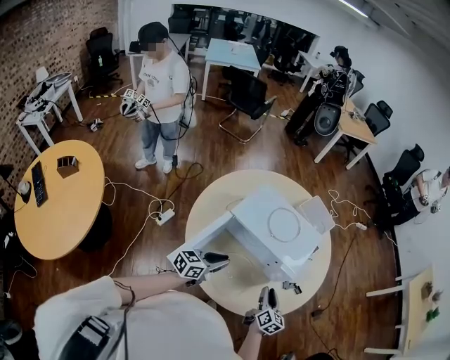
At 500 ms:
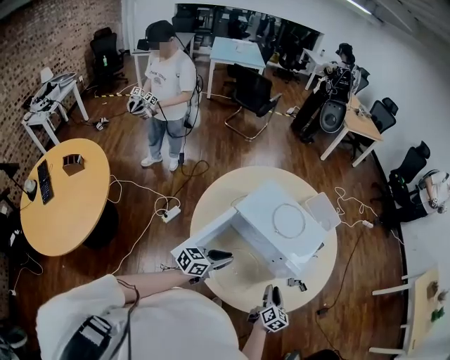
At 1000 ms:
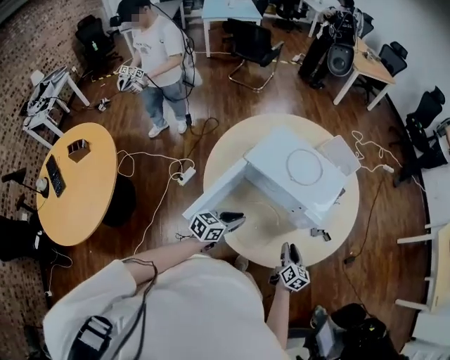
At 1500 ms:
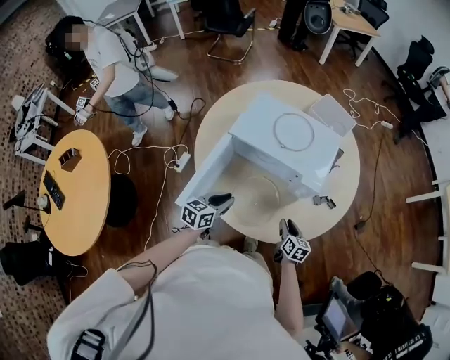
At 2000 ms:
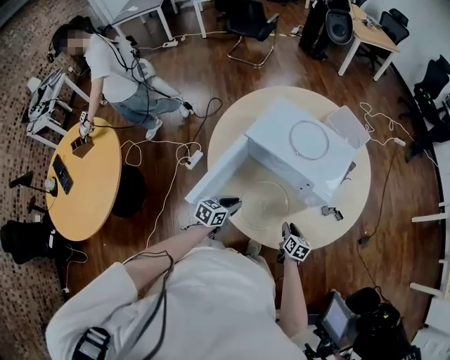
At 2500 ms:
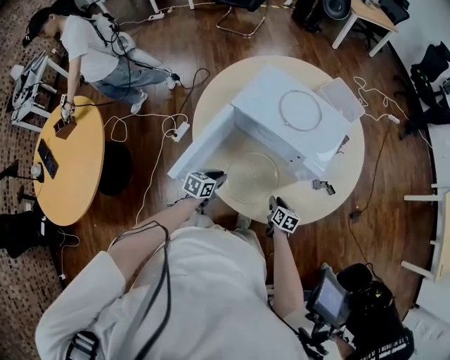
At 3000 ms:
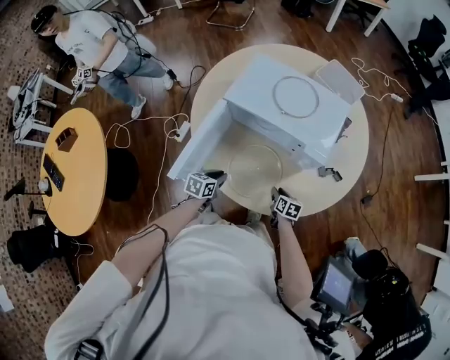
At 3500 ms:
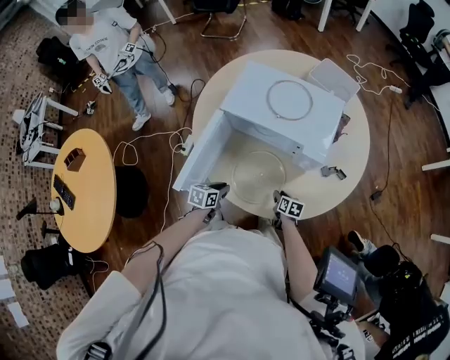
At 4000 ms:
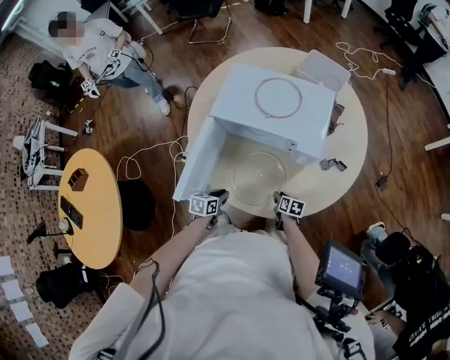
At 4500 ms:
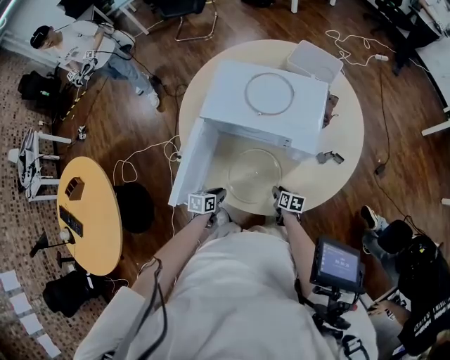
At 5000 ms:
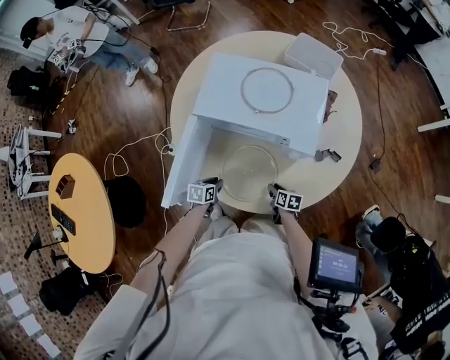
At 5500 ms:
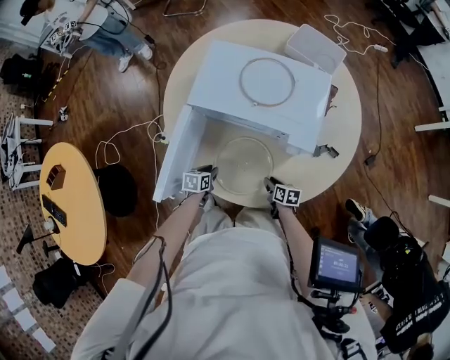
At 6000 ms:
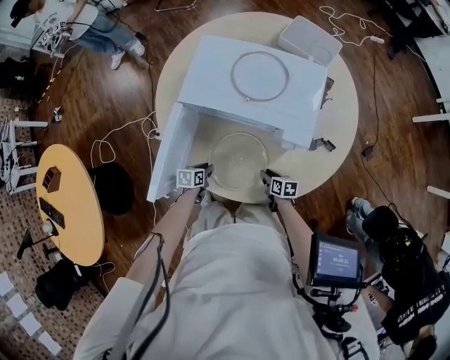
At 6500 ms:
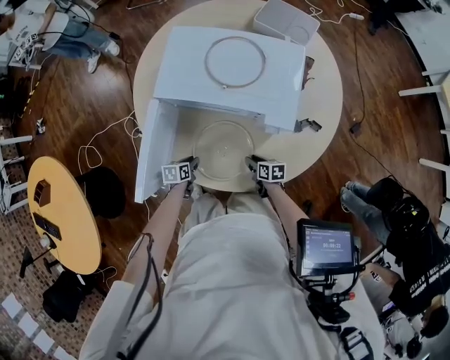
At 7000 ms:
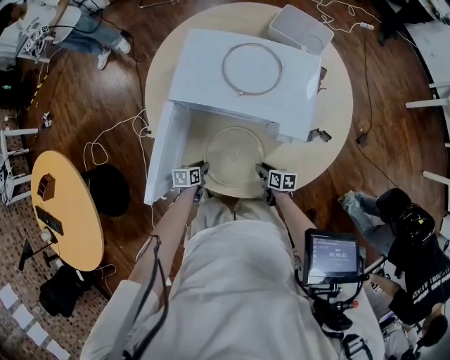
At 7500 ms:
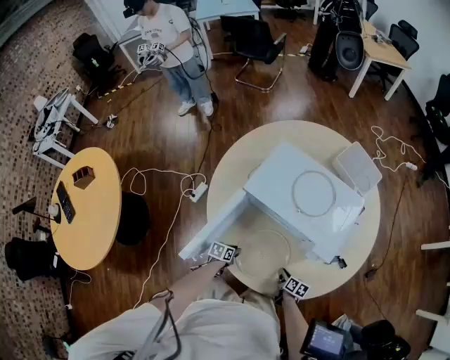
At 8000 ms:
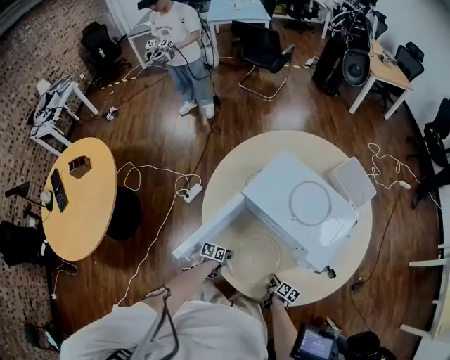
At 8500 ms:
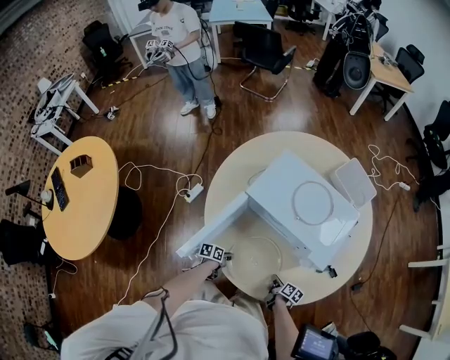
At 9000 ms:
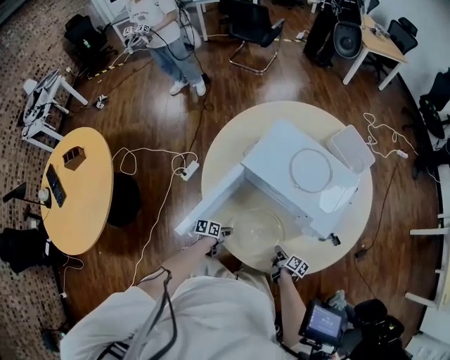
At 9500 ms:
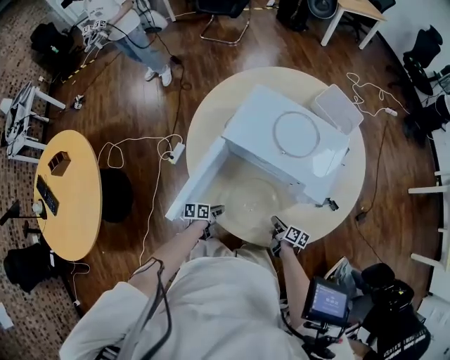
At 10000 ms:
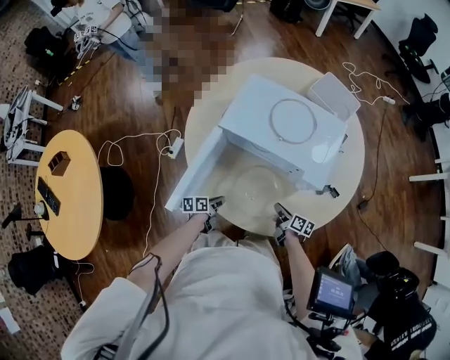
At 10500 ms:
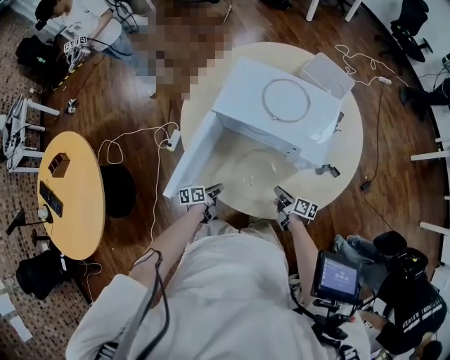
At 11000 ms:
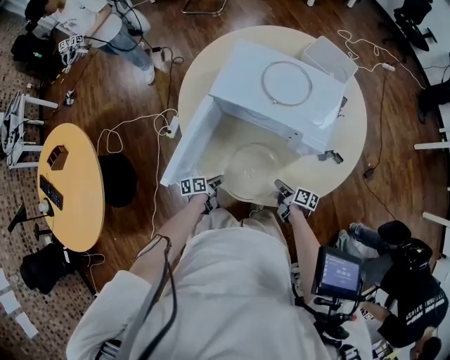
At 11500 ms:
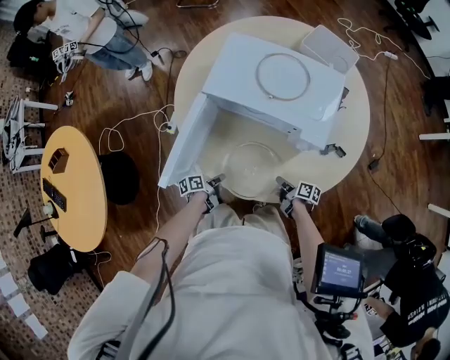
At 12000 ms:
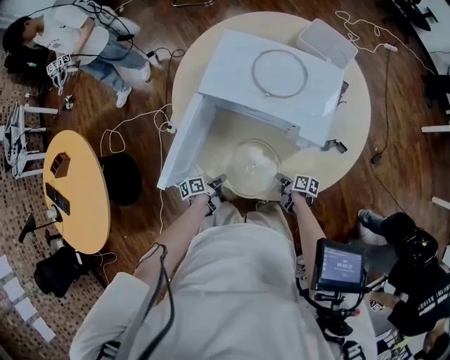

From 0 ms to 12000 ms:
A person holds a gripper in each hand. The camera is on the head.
From 0 ms to 2000 ms: The grippers both shift downward by roughly 15 cm. The left gripper changes its angle by some 20 degrees, while the right gripper changes its angle by approximately 20 degrees.
From 2000 ms to 4000 ms: The two grippers go approximately 10 cm downward.
From 4000 ms to 6000 ms: The left gripper heads downward and forward, covering about 10 cm.
From 6000 ms to 8000 ms: The left gripper swivels roughly 20 degrees.
From 8000 ms to 10000 ms: The grippers both shift upward by about 5 cm.
From 10000 ms to 12000 ms: The right gripper goes about 5 cm downward.

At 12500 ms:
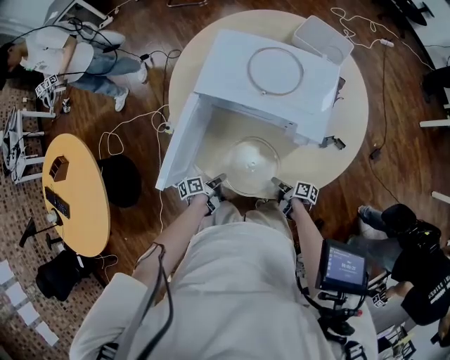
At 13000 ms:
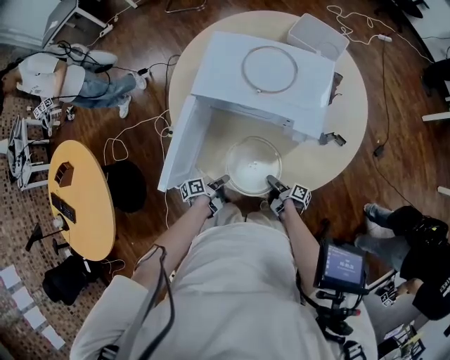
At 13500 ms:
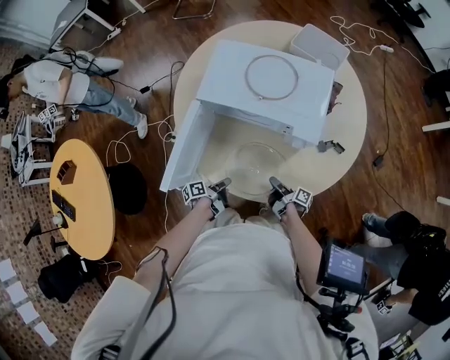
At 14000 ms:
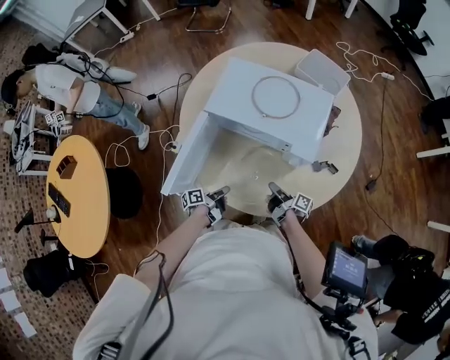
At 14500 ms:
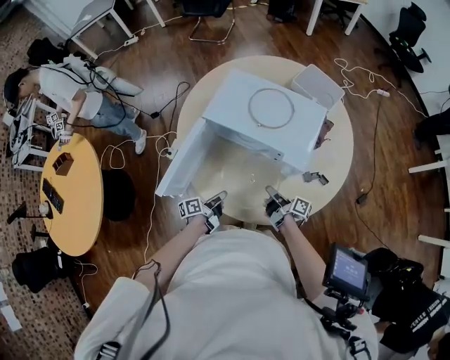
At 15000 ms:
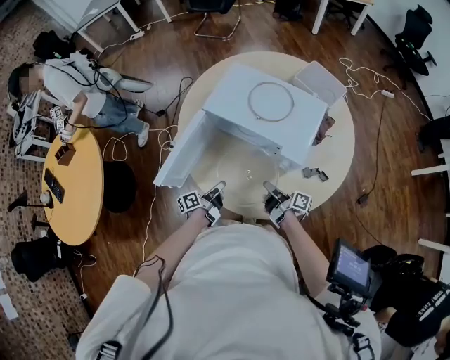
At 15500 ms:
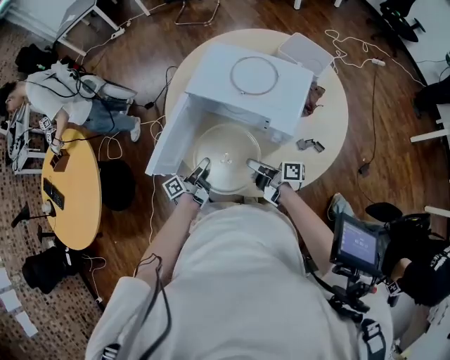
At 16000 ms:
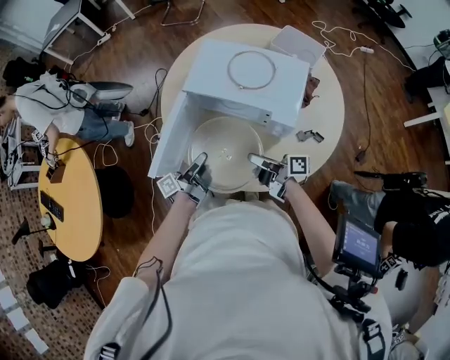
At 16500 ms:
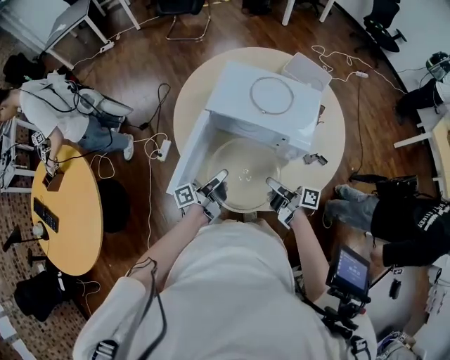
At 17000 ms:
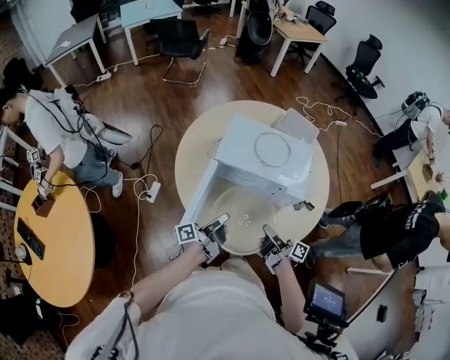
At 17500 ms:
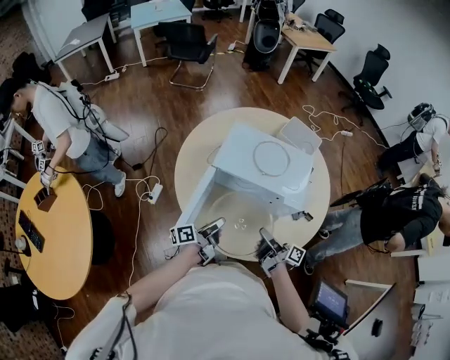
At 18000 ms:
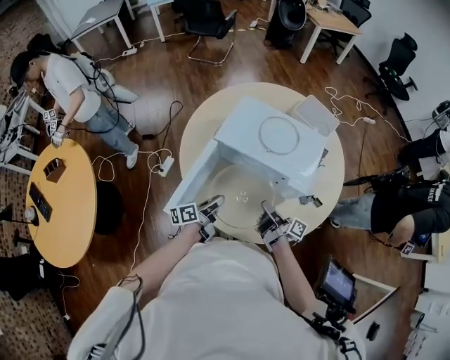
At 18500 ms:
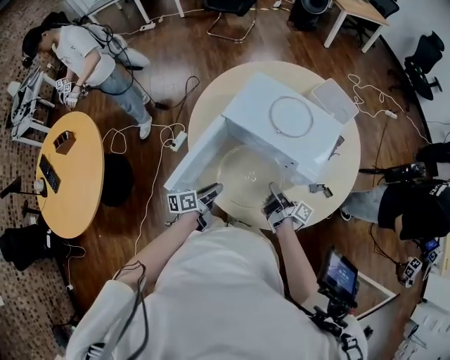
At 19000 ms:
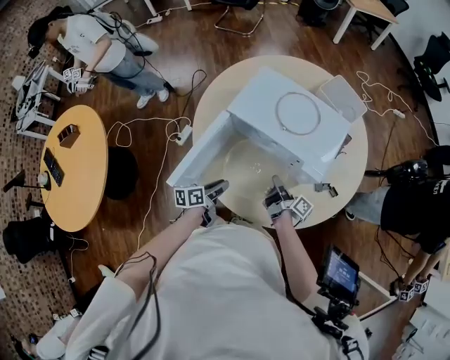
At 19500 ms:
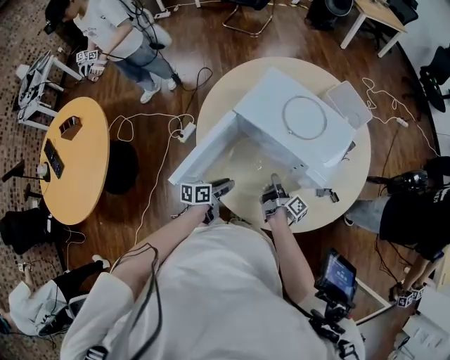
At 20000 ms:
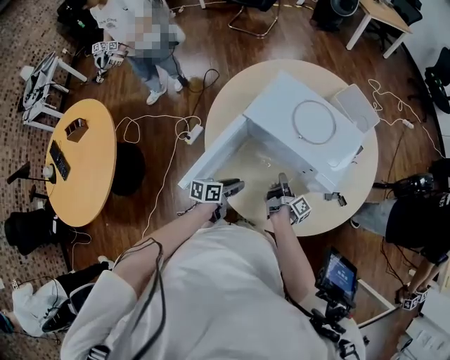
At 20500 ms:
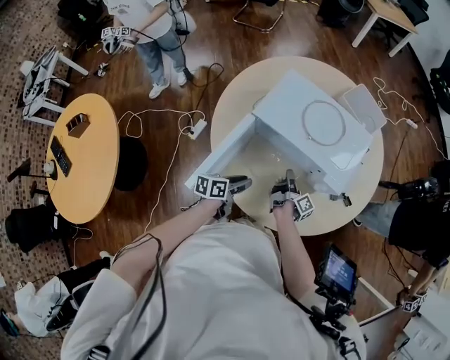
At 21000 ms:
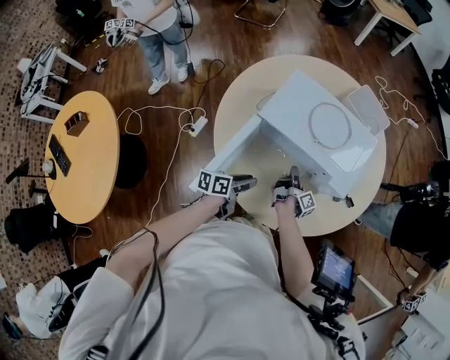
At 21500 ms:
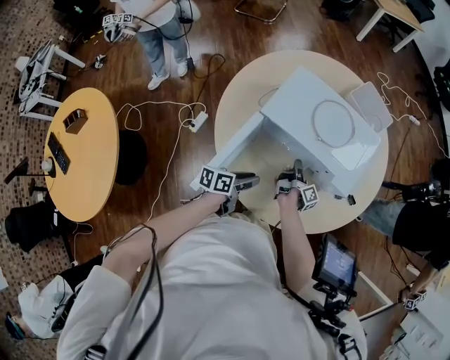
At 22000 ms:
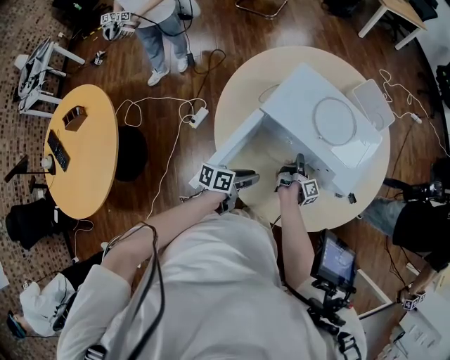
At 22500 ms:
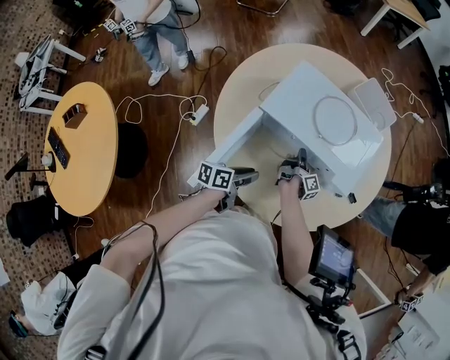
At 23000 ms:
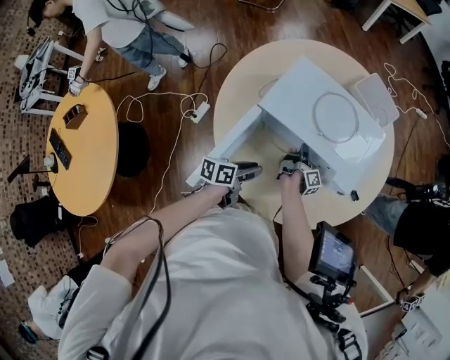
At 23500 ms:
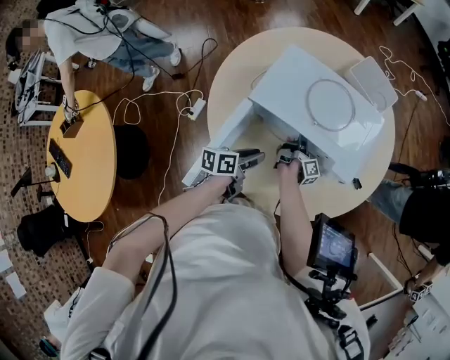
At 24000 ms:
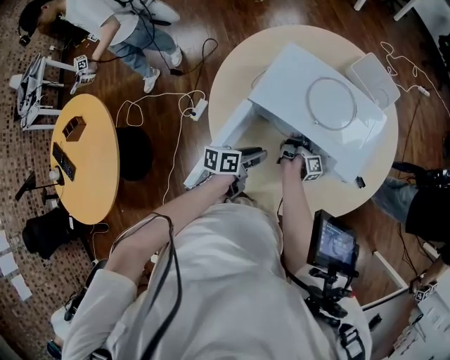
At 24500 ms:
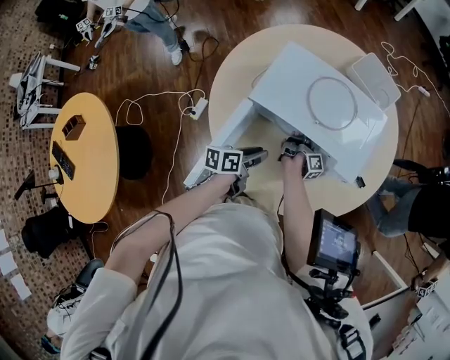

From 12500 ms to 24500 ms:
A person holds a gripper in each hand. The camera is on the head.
From 12500 ms to 14500 ms: The right gripper goes about 20 cm upward and forward, swivels about 20 degrees, and closes; the left gripper heads upward, covering about 10 cm.
From 14500 ms to 16500 ms: The right gripper heads upward and to the left, covering approximately 15 cm, while the left gripper goes approximately 15 cm upward, and turns by about 20 degrees.
From 16500 ms to 18500 ms: The left gripper shifts about 5 cm downward, and swivels about 30 degrees. Meanwhile the right gripper moves forward and downward, approximately 10 cm.
From 18500 ms to 20500 ms: The right gripper heads downward and forward, covering about 10 cm, and rotates about 30 degrees.
From 20500 ms to 22500 ms: The right gripper moves forward, roughly 5 cm.
From 22500 ms to 24500 ms: The left gripper heads forward, covering some 5 cm.

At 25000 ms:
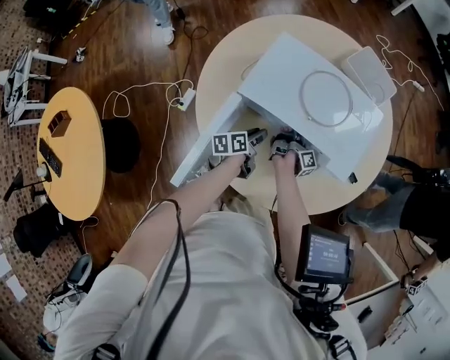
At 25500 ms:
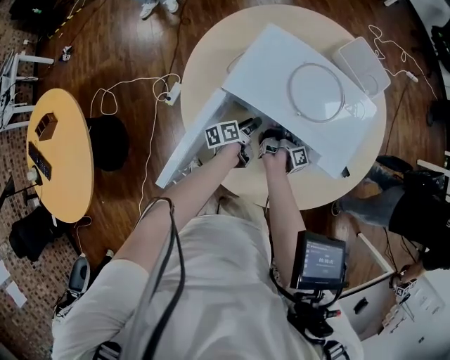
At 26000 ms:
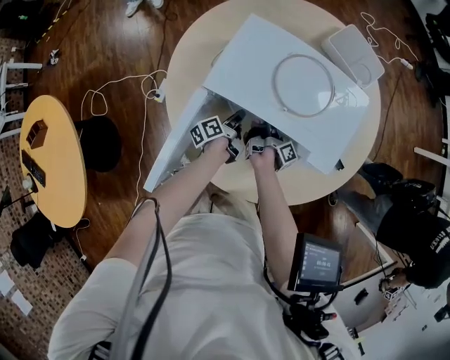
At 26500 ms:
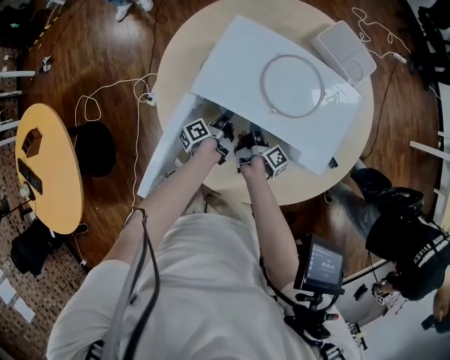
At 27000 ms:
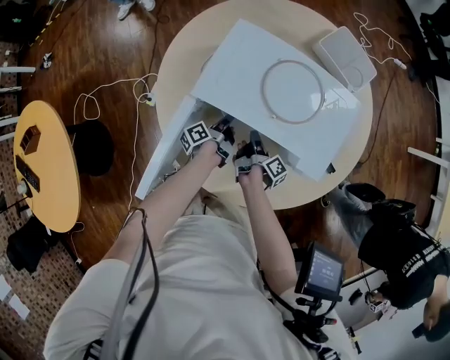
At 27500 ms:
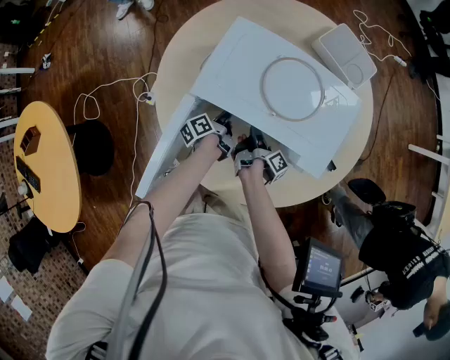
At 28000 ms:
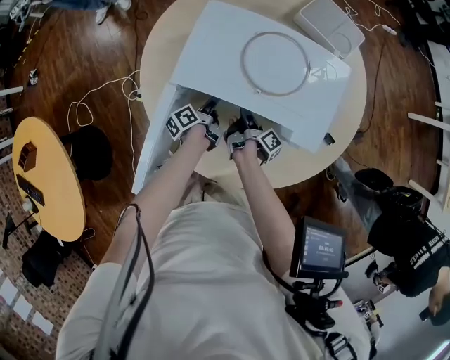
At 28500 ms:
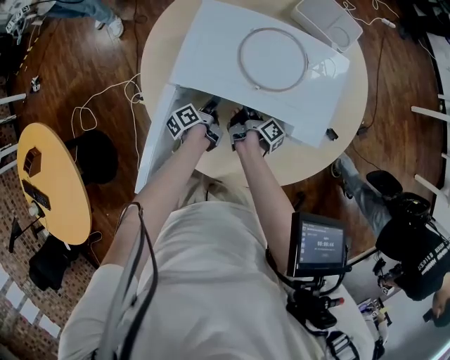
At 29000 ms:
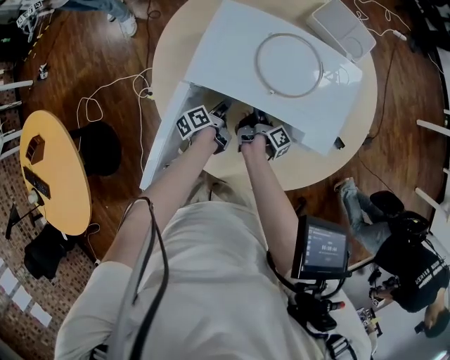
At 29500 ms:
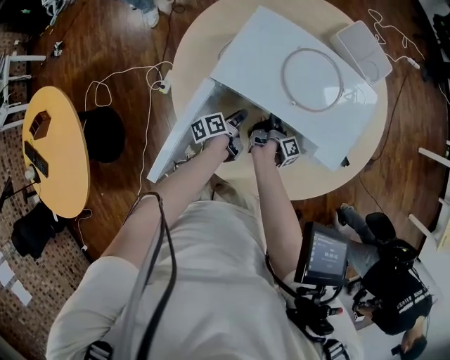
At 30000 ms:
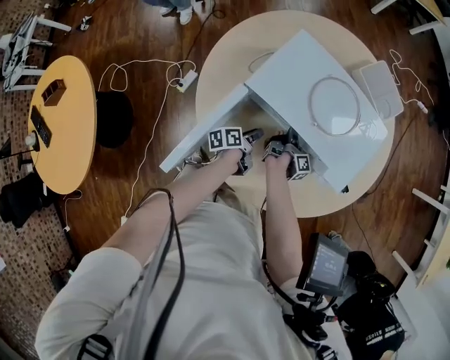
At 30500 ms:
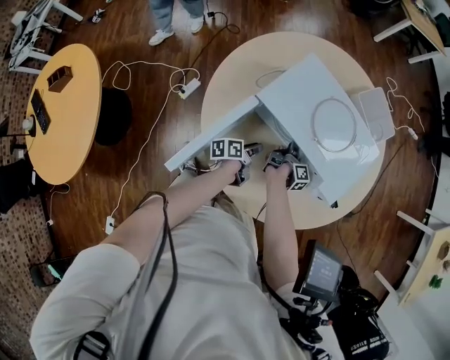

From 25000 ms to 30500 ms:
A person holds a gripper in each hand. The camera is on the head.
From 25000 ms to 27000 ms: The right gripper travels backward by about 5 cm, while the left gripper is displaced downward and forward by about 10 cm, and rotates about 40 degrees.
From 27000 ms to 28500 ms: The grippers move only a little.
From 28500 ms to 30500 ms: The right gripper opens. The left gripper heads backward, covering about 10 cm.
